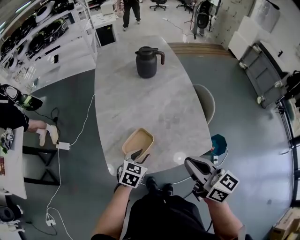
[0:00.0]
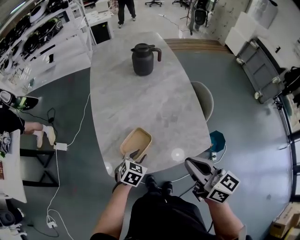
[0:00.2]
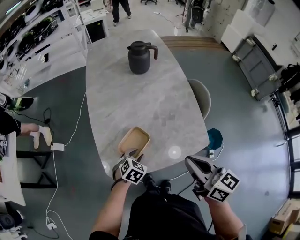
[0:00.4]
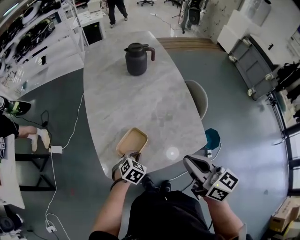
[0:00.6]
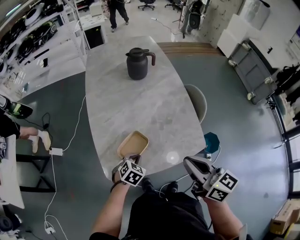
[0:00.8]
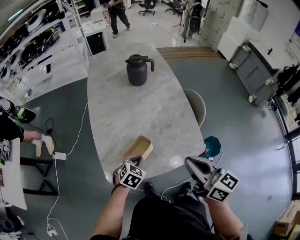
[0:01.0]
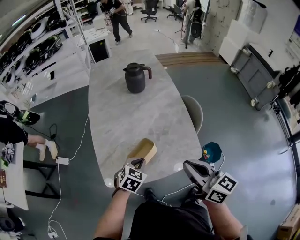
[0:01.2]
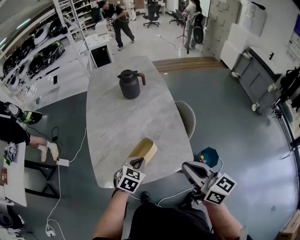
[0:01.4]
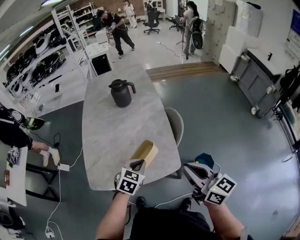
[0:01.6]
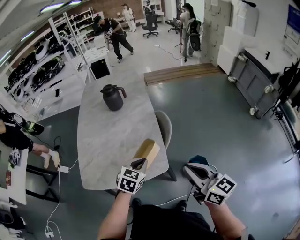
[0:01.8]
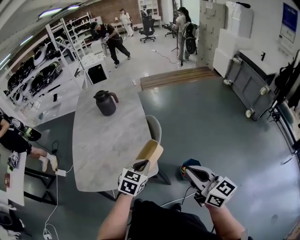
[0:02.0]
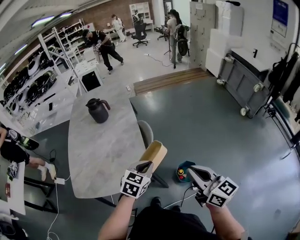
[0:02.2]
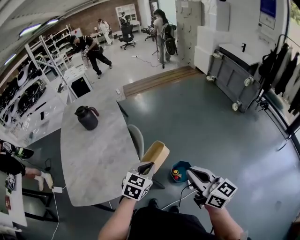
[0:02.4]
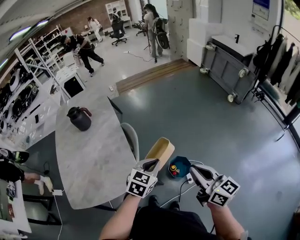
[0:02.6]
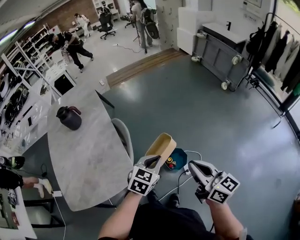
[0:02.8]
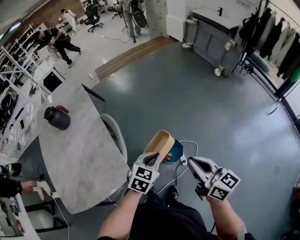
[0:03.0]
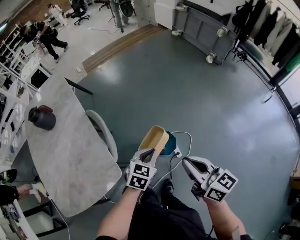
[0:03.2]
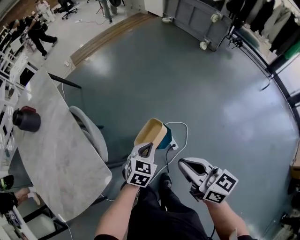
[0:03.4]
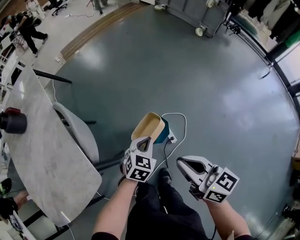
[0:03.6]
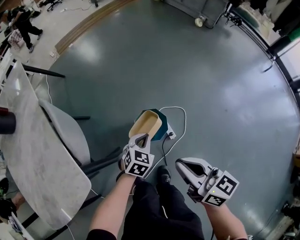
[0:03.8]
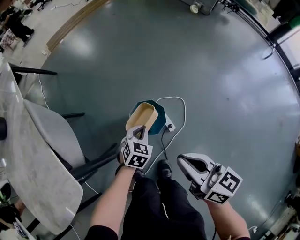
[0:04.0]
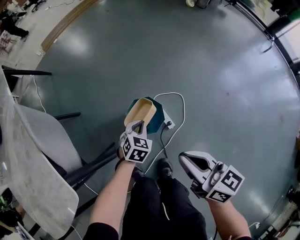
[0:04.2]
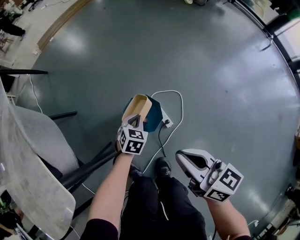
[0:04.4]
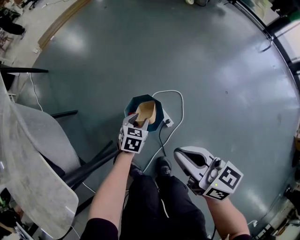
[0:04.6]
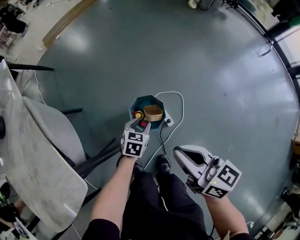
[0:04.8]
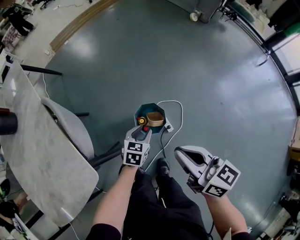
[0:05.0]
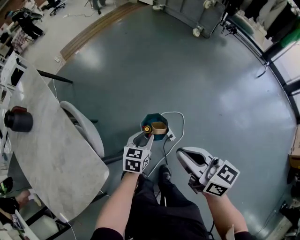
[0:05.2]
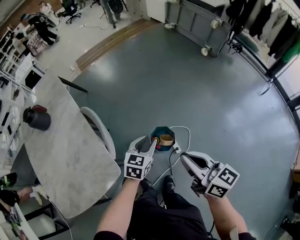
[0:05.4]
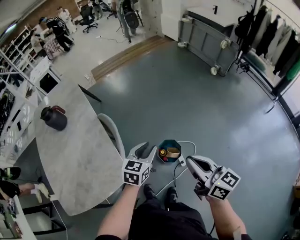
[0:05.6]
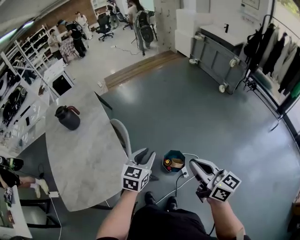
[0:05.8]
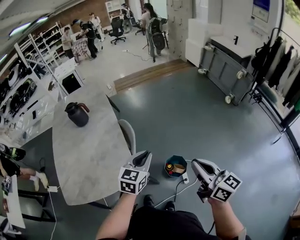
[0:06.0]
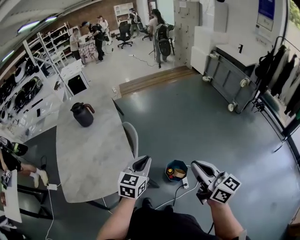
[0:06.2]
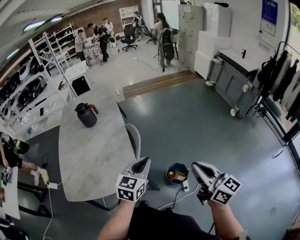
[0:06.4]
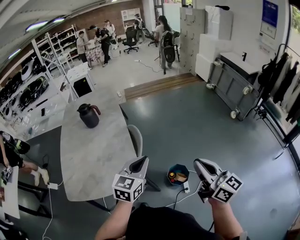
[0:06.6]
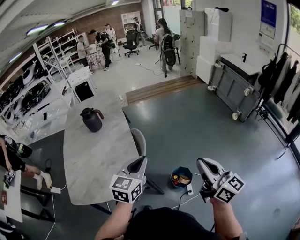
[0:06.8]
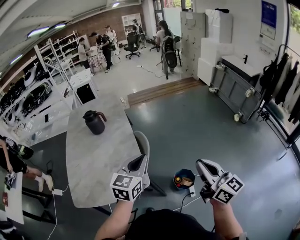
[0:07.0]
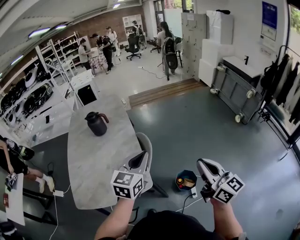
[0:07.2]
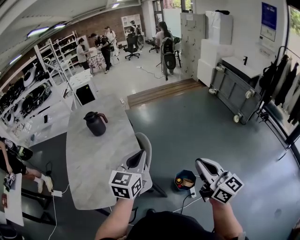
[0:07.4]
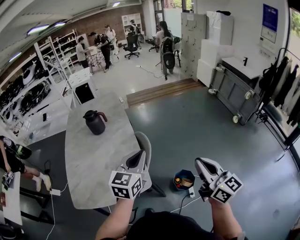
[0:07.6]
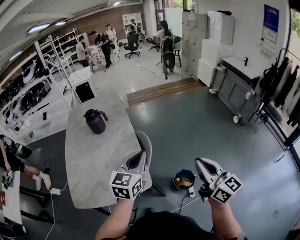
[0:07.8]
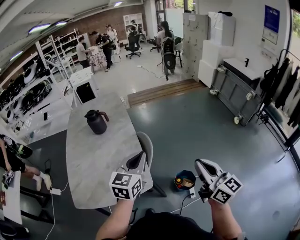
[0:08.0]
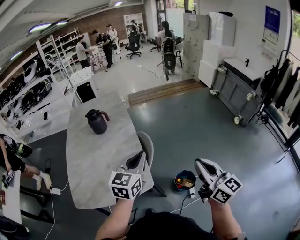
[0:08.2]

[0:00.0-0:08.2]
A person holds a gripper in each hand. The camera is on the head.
0.0 to 1.6 s: The left gripper moves to the right and upward, roughly 20 cm, and closes its fingers. The right gripper heads to the right, covering approximately 20 cm.
1.6 to 3.2 s: The right gripper ends up roughly 35 cm from where it was, and turns by roughly 30 degrees, while the left gripper changes place by about 40 cm, and rotates about 30 degrees.
3.2 to 5.0 s: The right gripper goes some 15 cm downward, while the left gripper is displaced downward by some 25 cm, and opens.
5.0 to 6.6 s: The left gripper is displaced upward by roughly 50 cm, rotates roughly 40 degrees, and closes, while the right gripper heads upward, covering some 30 cm, and rotates approximately 30 degrees.
6.6 to 8.2 s: The two grippers go approximately 5 cm to the left.

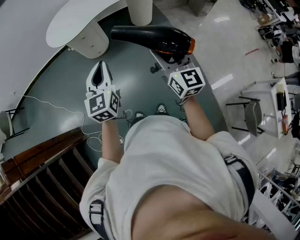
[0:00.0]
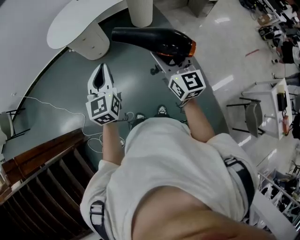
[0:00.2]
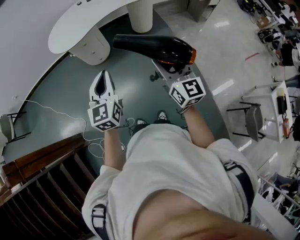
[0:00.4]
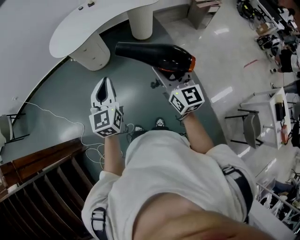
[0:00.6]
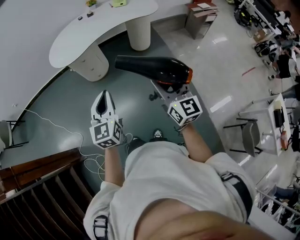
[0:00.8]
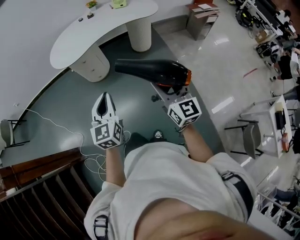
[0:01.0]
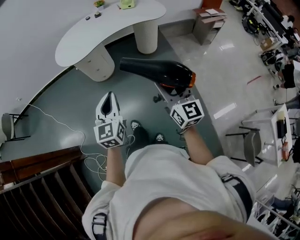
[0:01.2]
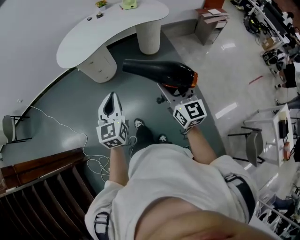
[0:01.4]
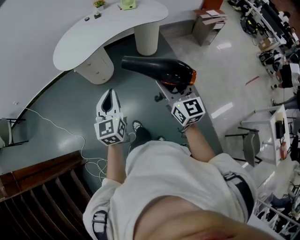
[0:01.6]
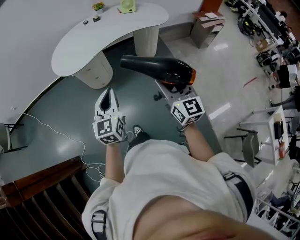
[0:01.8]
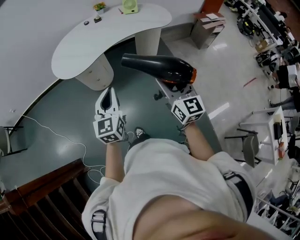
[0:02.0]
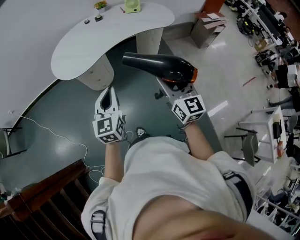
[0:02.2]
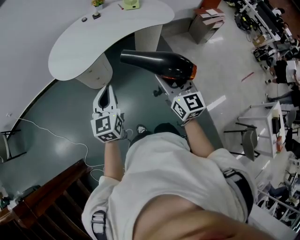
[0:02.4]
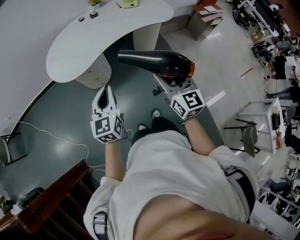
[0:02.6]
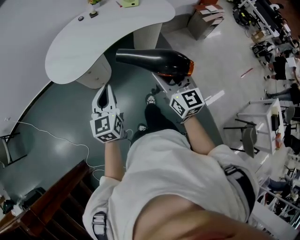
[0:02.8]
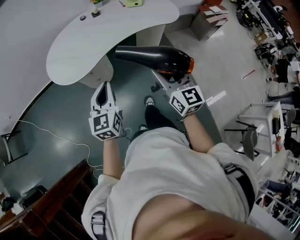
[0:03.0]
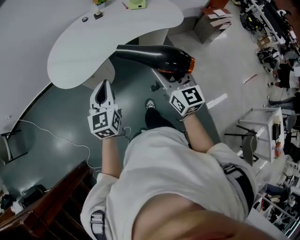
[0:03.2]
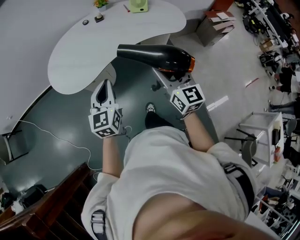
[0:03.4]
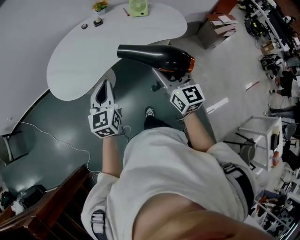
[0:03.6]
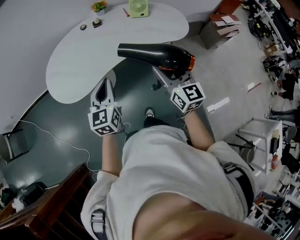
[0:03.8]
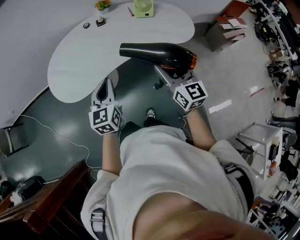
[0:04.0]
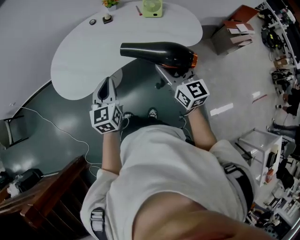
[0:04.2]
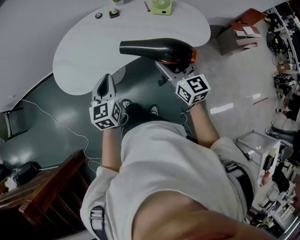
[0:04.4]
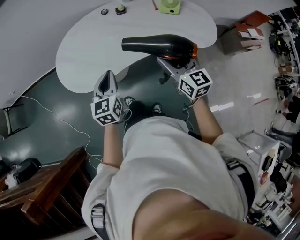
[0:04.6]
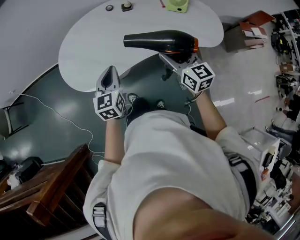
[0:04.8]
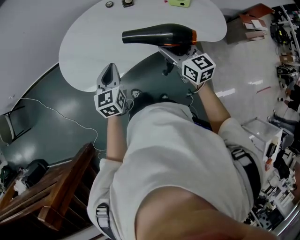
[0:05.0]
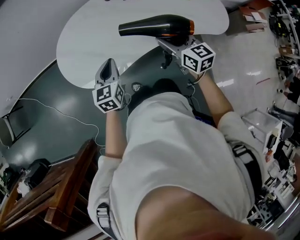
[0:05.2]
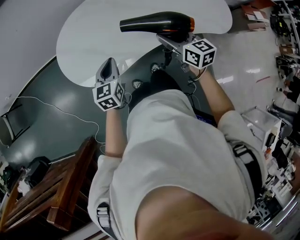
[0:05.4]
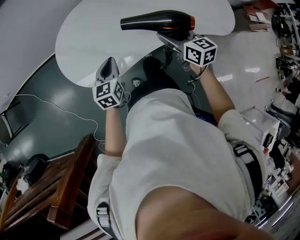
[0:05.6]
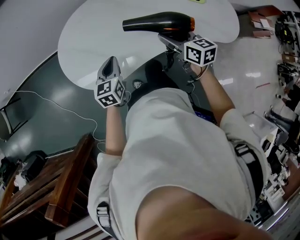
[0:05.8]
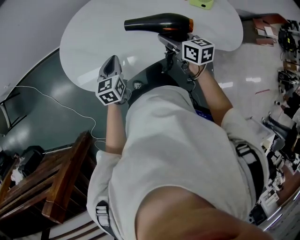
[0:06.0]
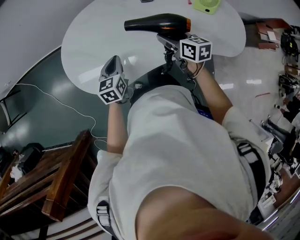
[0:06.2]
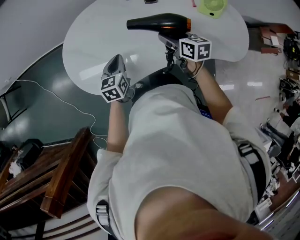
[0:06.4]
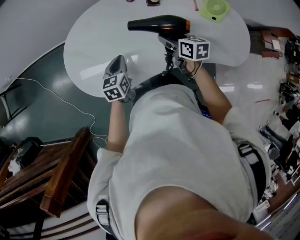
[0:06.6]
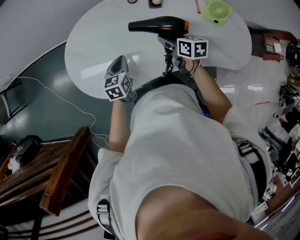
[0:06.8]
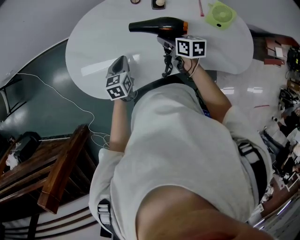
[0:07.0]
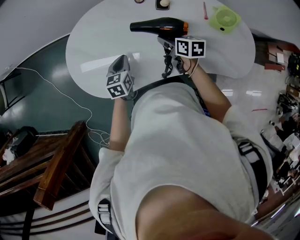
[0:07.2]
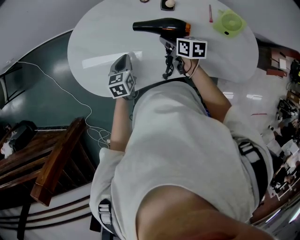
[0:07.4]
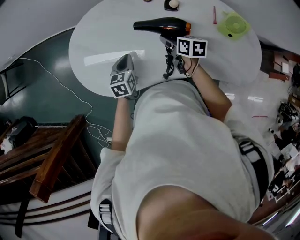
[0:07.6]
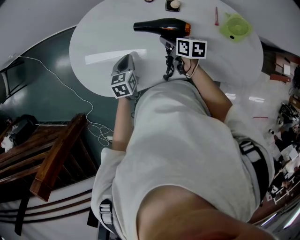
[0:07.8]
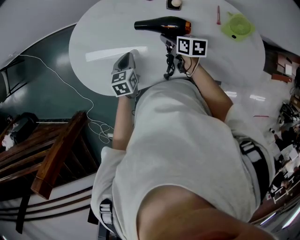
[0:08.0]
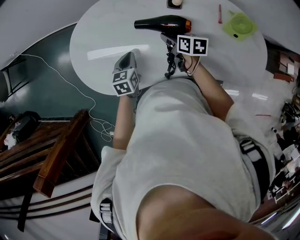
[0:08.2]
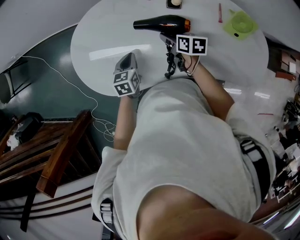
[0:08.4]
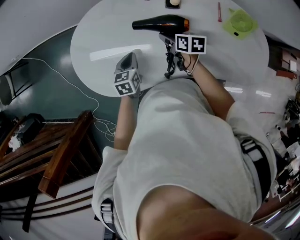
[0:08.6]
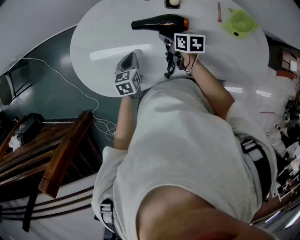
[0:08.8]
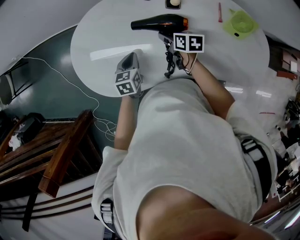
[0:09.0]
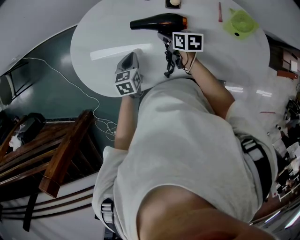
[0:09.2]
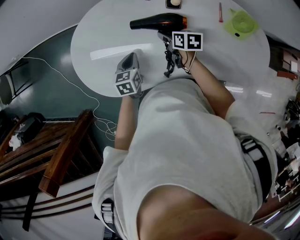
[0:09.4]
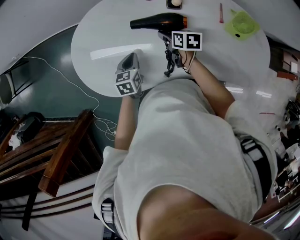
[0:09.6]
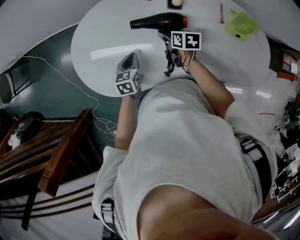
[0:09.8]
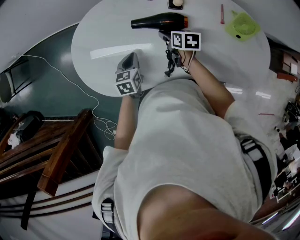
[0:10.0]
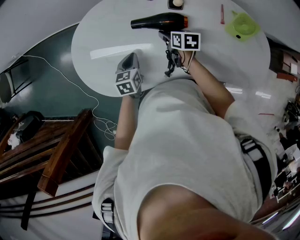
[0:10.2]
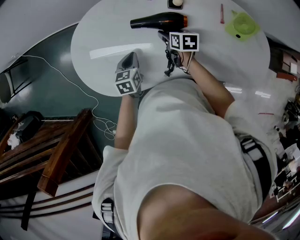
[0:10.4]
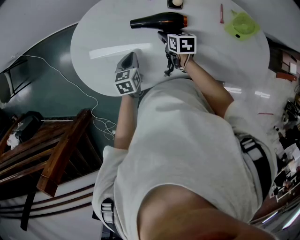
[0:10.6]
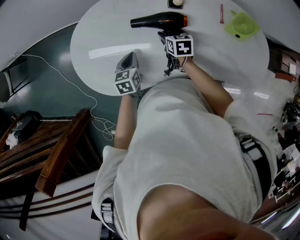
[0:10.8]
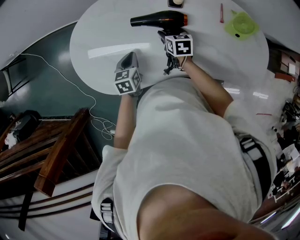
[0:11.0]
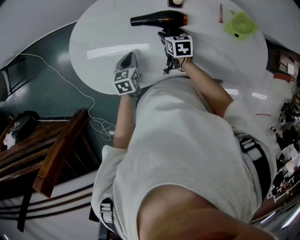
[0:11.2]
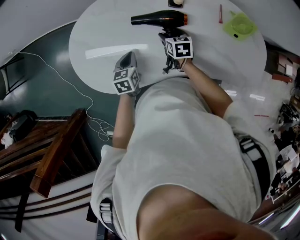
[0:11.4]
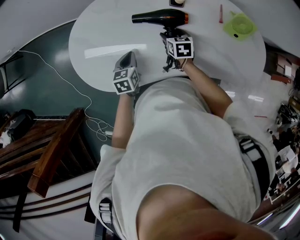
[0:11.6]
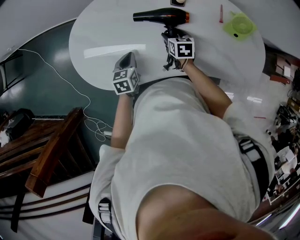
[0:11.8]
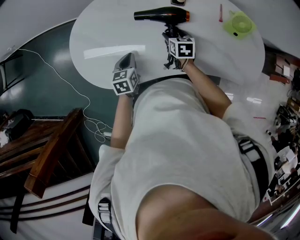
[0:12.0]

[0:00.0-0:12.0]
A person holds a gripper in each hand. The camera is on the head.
0.0 to 1.6 s: The grippers both shift forward by approximately 10 cm.
1.6 to 3.0 s: The two grippers go approximately 25 cm forward and to the left.
3.0 to 4.4 s: The grippers both shift forward by about 25 cm.
4.4 to 6.0 s: Both grippers move forward, downward and to the left, roughly 30 cm. The right gripper swivels roughly 30 degrees.
6.0 to 7.6 s: The right gripper shifts approximately 20 cm forward and downward, and changes its angle by some 20 degrees, while the left gripper shifts some 10 cm forward and downward.
7.6 to 9.0 s: There are only small adjustments of the grippers.
9.0 to 10.4 s: There are only small adjustments of the grippers.
10.4 to 12.0 s: The left gripper goes about 5 cm backward.

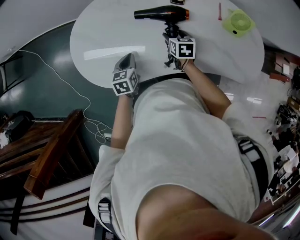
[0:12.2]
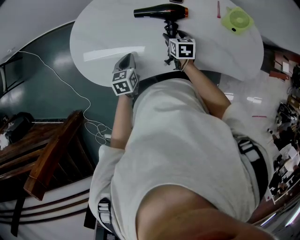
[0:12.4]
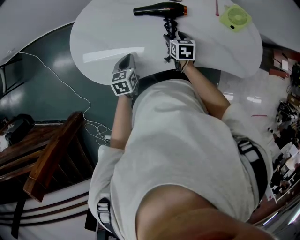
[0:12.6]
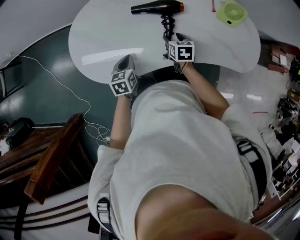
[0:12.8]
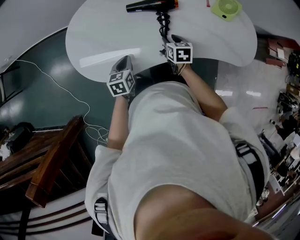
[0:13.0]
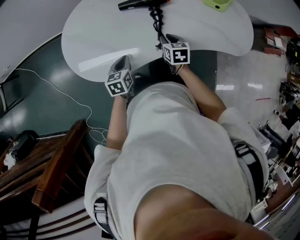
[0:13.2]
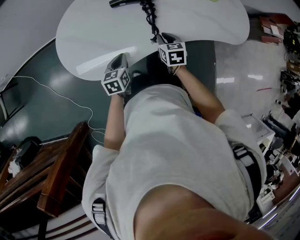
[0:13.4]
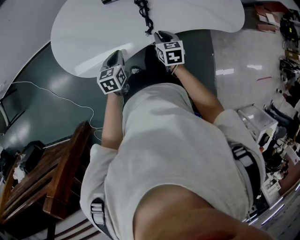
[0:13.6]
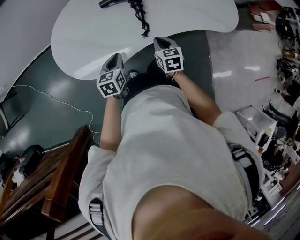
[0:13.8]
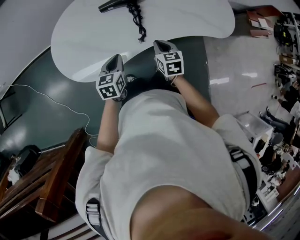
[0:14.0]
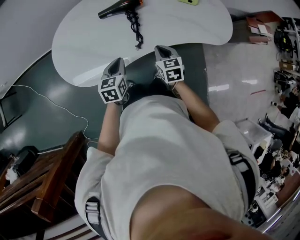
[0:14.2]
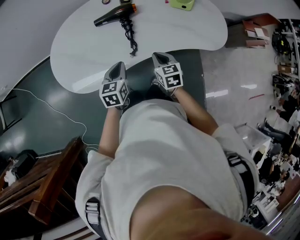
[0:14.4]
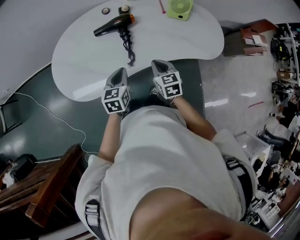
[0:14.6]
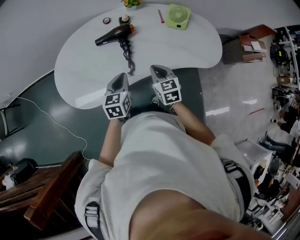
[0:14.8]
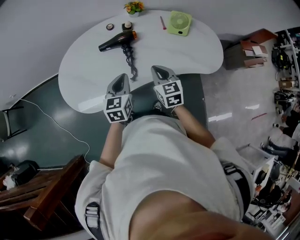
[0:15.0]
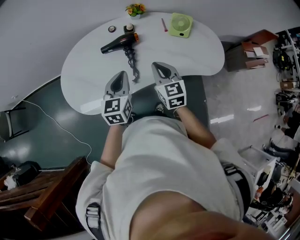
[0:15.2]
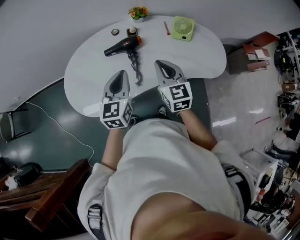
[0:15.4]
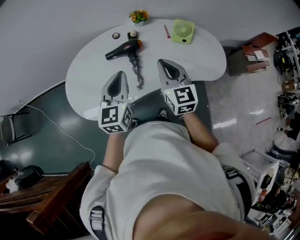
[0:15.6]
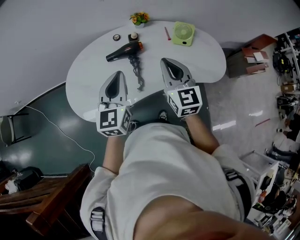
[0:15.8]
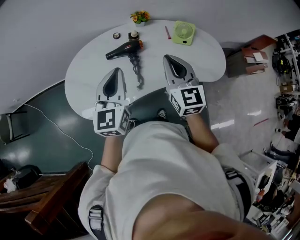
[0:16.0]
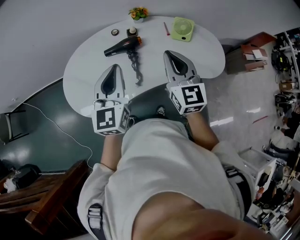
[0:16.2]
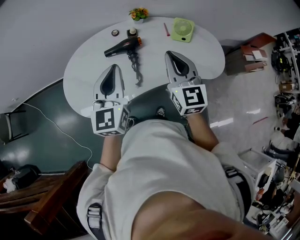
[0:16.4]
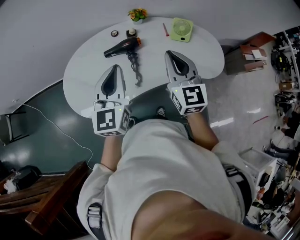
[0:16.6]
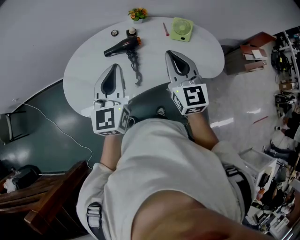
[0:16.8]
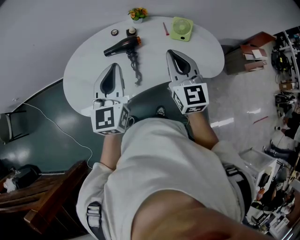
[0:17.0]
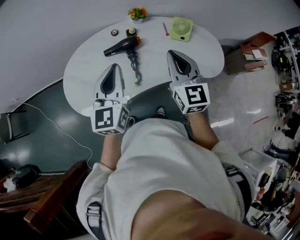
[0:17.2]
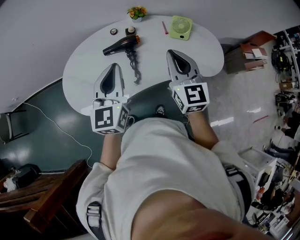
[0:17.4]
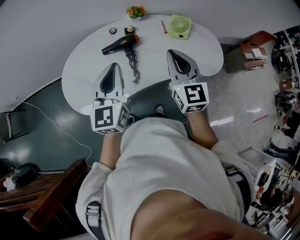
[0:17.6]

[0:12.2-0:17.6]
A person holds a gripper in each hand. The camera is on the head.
12.2 to 13.6 s: The left gripper heads backward, covering roughly 10 cm. Meanwhile the right gripper moves backward, roughly 20 cm, and closes its fingers.
13.6 to 15.0 s: The two grippers go some 20 cm upward and to the right. The right gripper changes its angle by approximately 20 degrees.
15.0 to 16.2 s: The two grippers go about 20 cm upward. The left gripper changes its angle by approximately 20 degrees. The right gripper changes its angle by roughly 20 degrees.
16.2 to 17.6 s: The grippers stay close to where they were, moving slightly.
